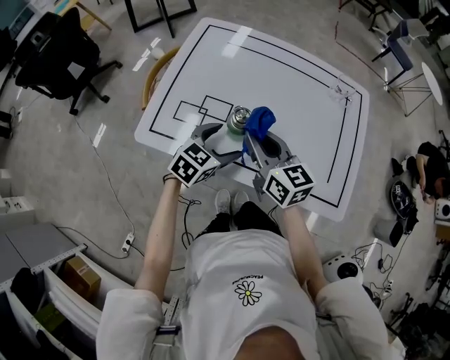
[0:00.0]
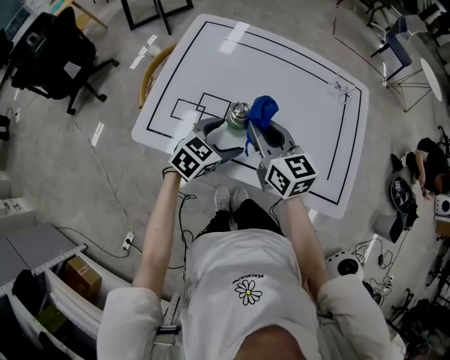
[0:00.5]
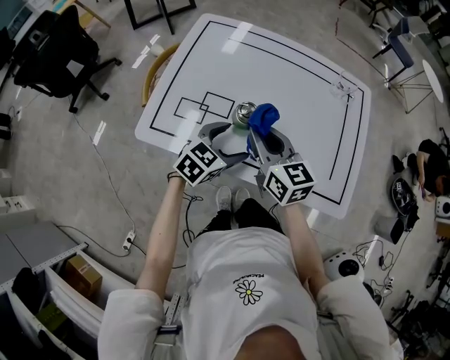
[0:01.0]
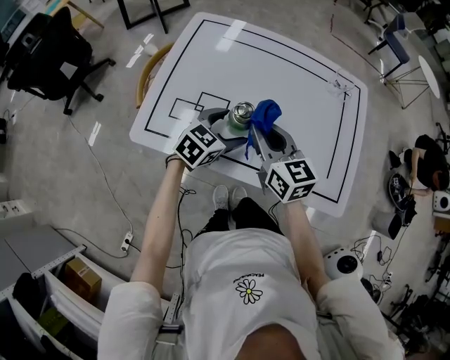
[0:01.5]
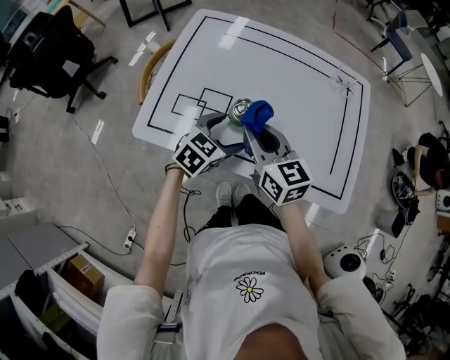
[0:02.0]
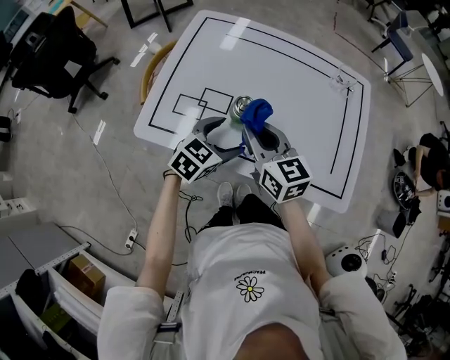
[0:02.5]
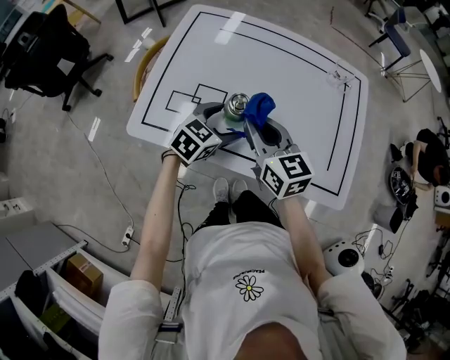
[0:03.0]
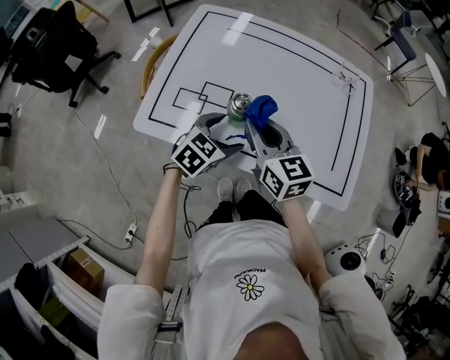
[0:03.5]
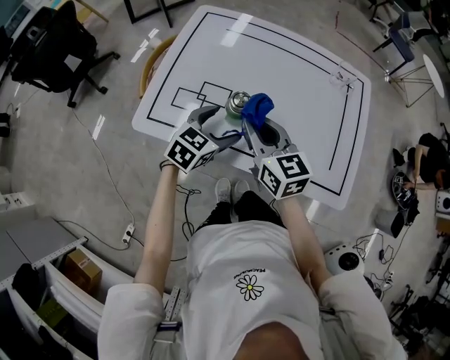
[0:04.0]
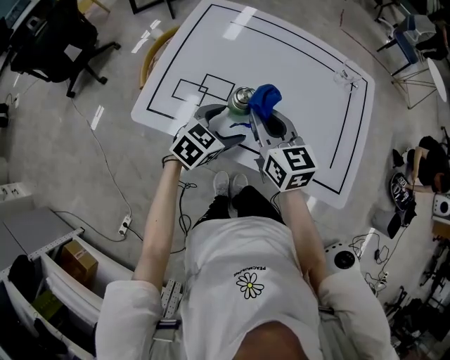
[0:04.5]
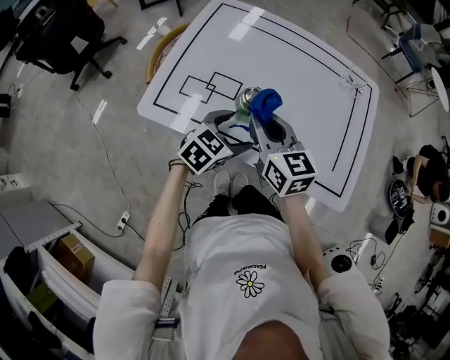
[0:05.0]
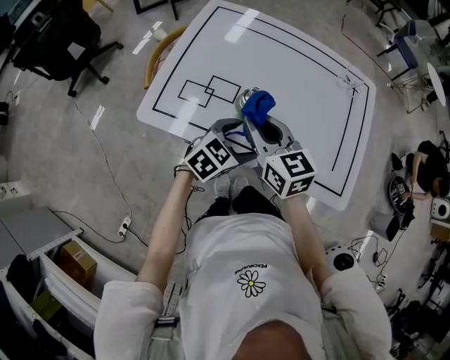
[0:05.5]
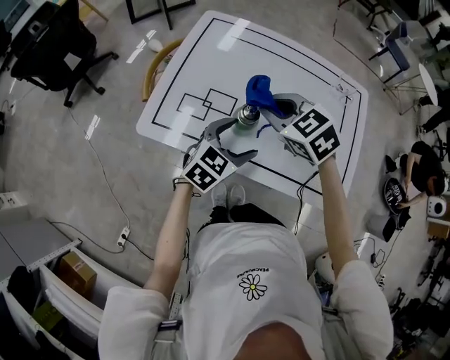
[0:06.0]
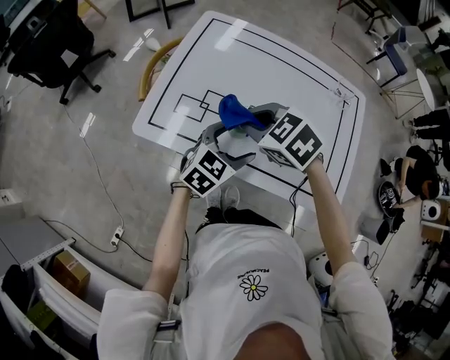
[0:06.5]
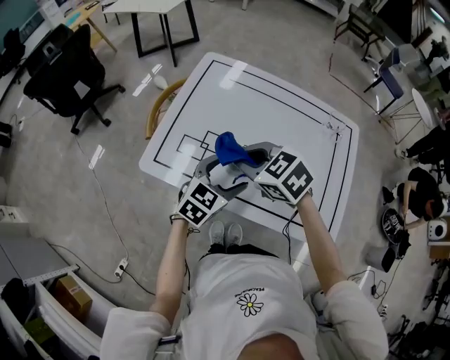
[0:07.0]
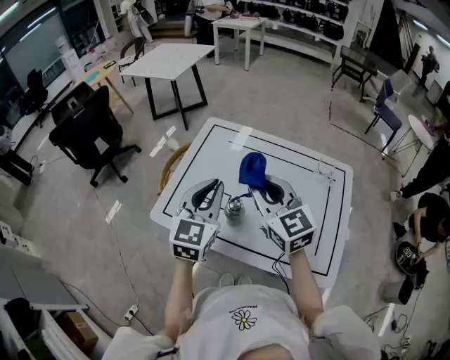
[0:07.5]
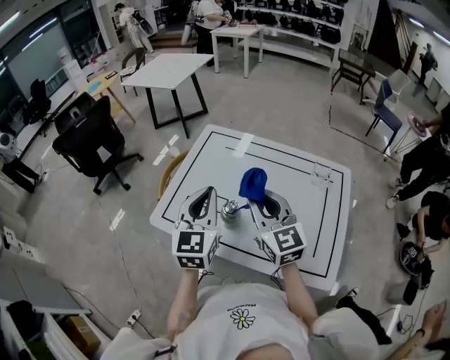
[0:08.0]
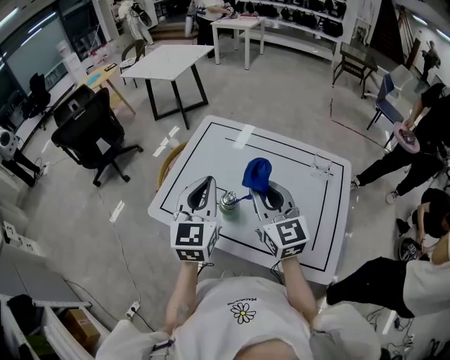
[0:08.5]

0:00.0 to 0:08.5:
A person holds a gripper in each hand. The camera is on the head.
0:00.0 to 0:04.0: The grippers move only a little.
0:04.0 to 0:06.5: The right gripper ends up roughly 5 cm from where it was, and tilts its fingers roughly 40 degrees downward.
0:06.5 to 0:08.5: The left gripper heads upward, covering roughly 20 cm, changes its angle by roughly 50 degrees, and closes up; the right gripper is displaced upward and to the right by roughly 15 cm, and points its fingers some 50 degrees further upward.

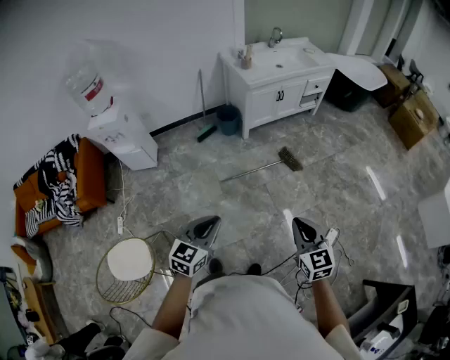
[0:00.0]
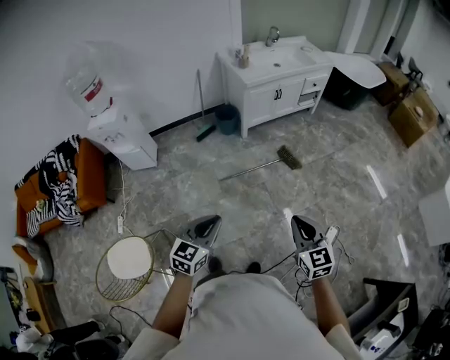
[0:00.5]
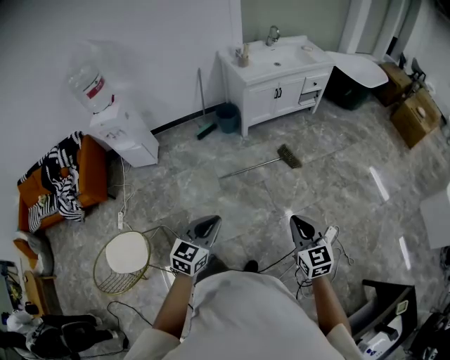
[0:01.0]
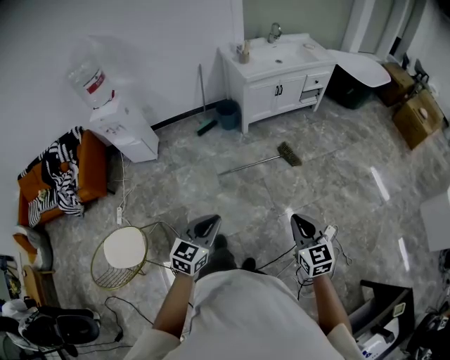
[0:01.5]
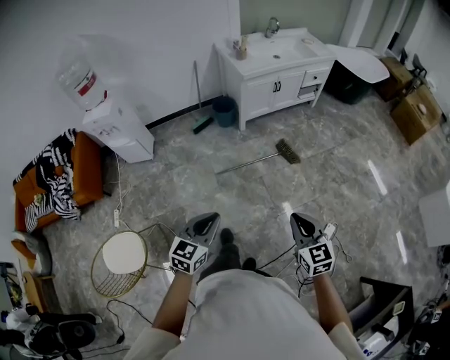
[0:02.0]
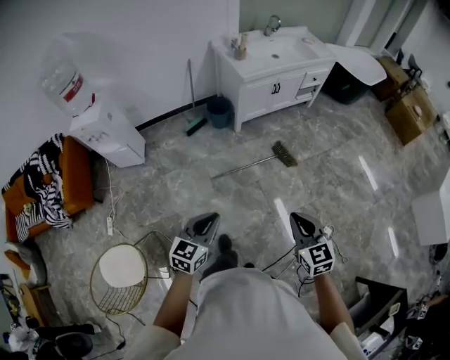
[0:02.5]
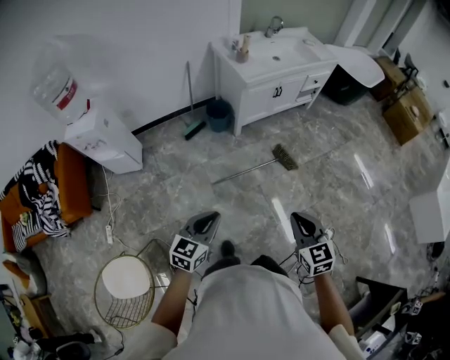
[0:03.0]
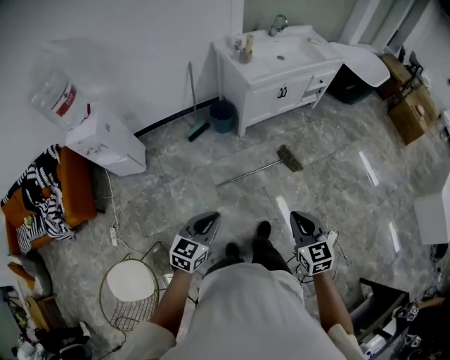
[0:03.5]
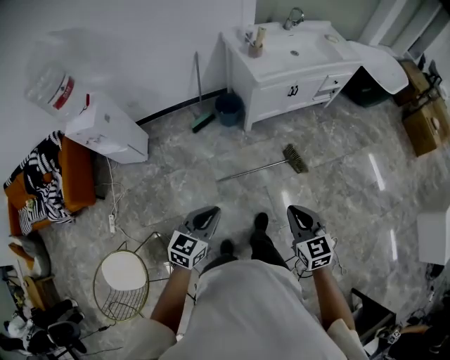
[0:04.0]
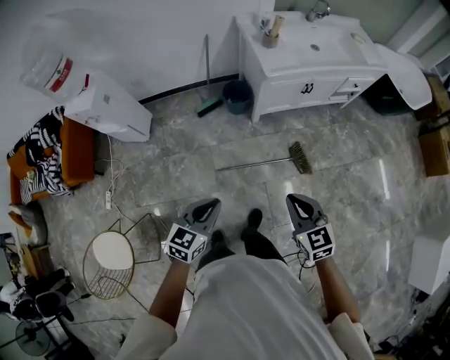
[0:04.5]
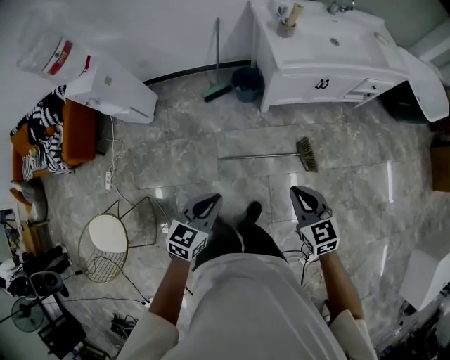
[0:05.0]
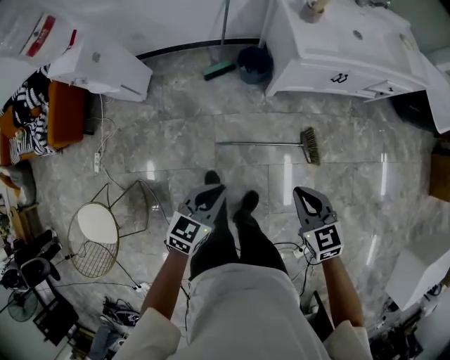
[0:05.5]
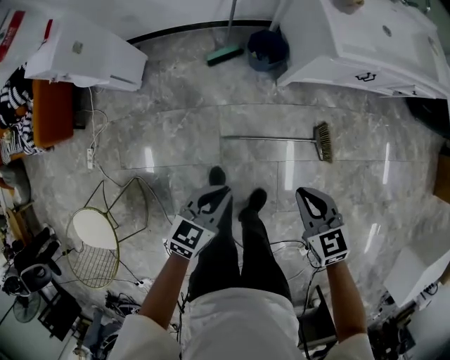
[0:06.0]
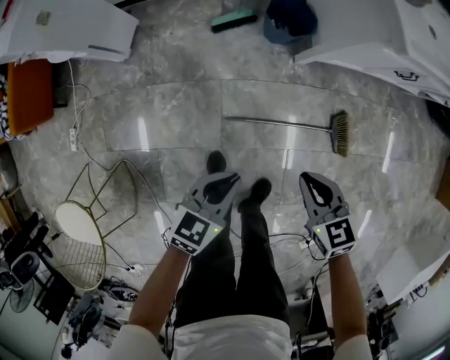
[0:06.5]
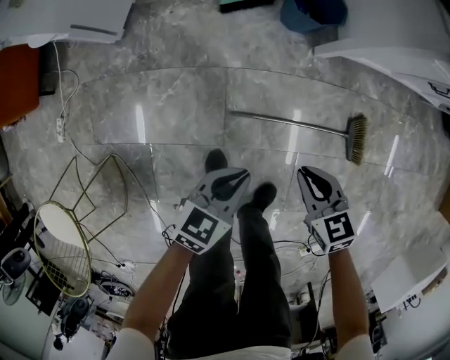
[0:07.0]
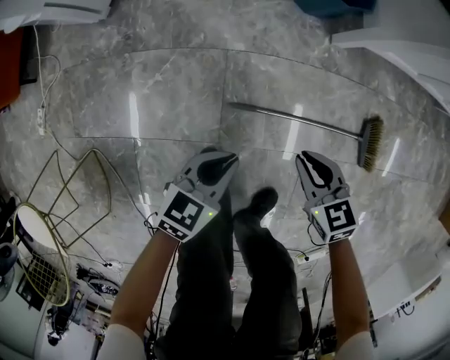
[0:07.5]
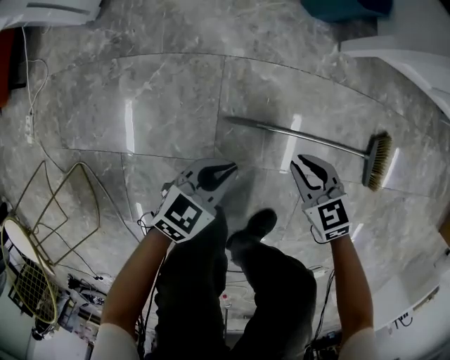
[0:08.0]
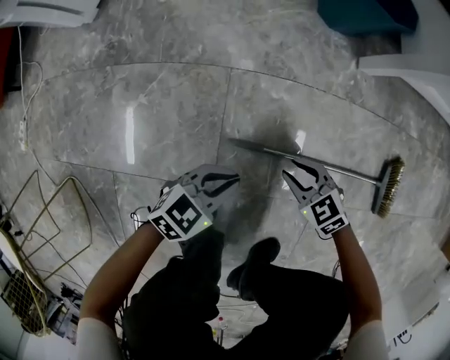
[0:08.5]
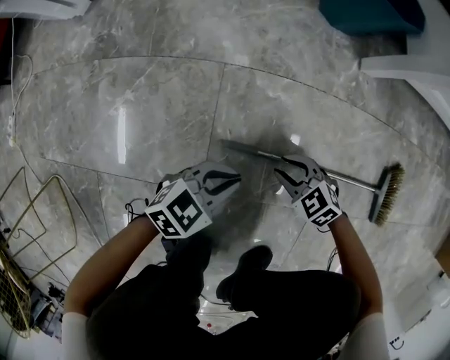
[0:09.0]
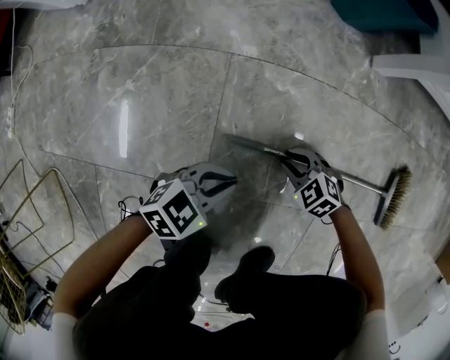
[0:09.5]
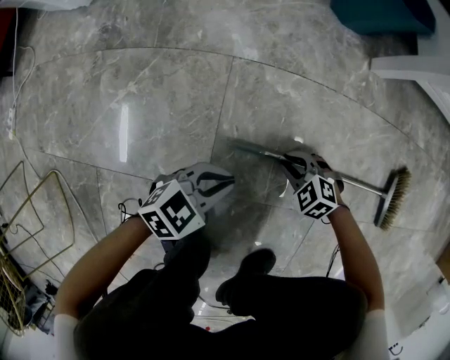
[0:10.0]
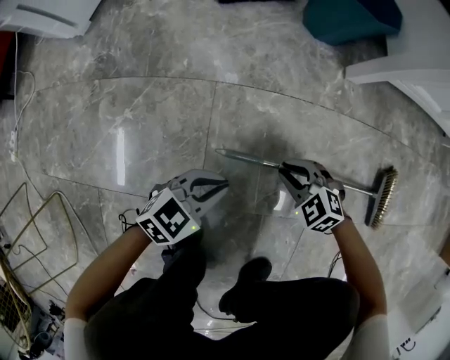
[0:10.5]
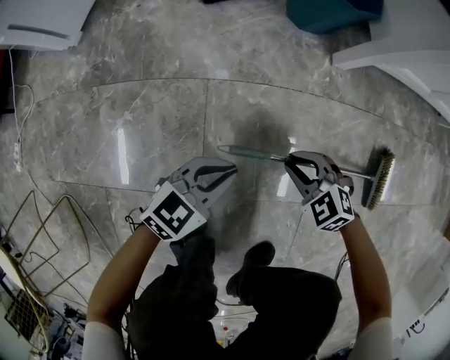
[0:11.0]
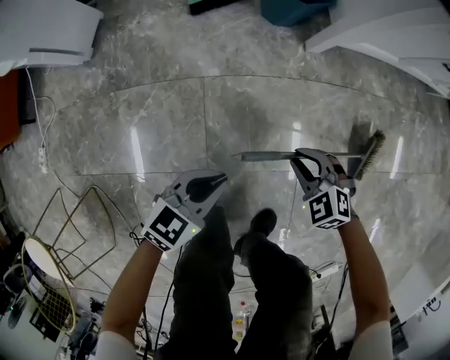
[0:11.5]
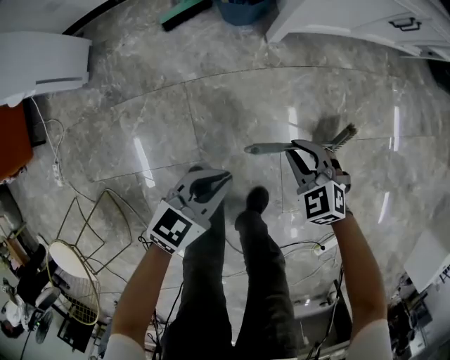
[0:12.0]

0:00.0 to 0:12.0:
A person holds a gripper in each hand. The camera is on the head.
0:00.0 to 0:02.0: The right gripper shifts by some 5 cm; the left gripper heads to the right, covering approximately 5 cm.
0:02.0 to 0:04.0: The two grippers go about 30 cm forward.
0:04.0 to 0:06.0: The left gripper shifts some 35 cm downward and forward. Meanwhile the right gripper travels forward and downward by about 35 cm, and rotates approximately 30 degrees.
0:06.0 to 0:08.0: Both grippers move downward, roughly 60 cm.
0:08.0 to 0:10.0: The right gripper goes some 25 cm downward, and rotates approximately 40 degrees, while the left gripper goes approximately 15 cm downward.
0:10.0 to 0:12.0: Both grippers travel together upward, approximately 40 cm. The right gripper turns by roughly 30 degrees.

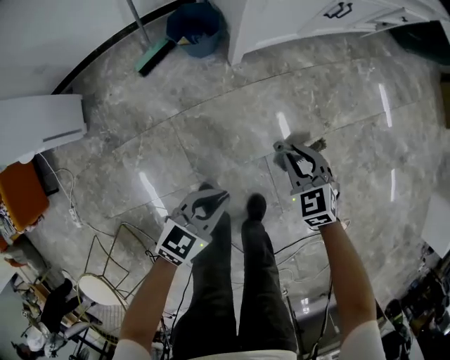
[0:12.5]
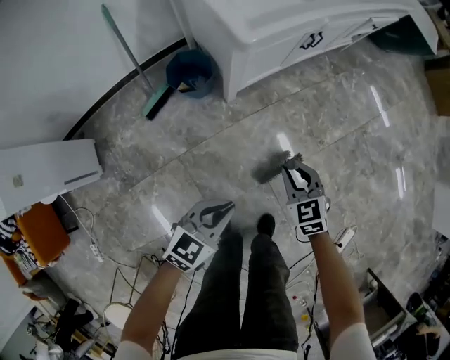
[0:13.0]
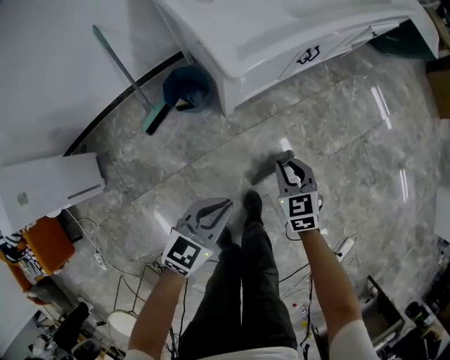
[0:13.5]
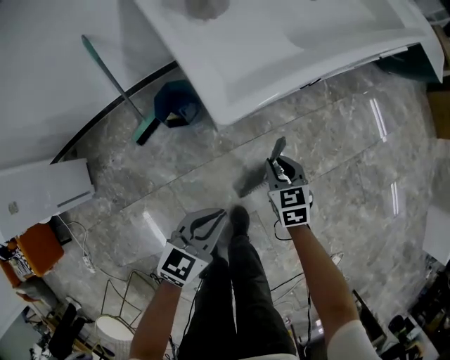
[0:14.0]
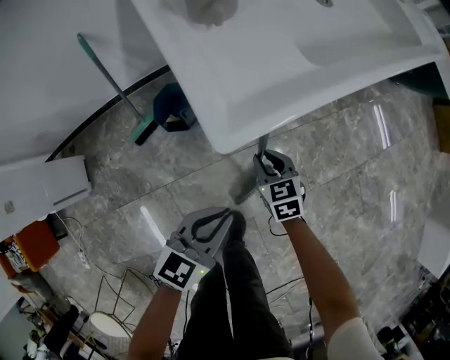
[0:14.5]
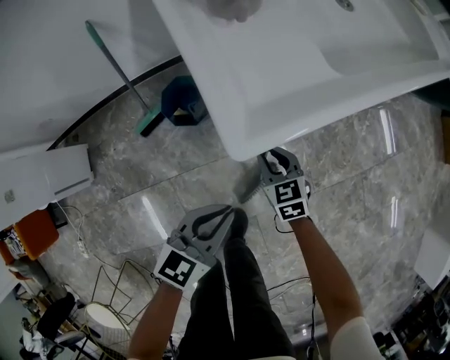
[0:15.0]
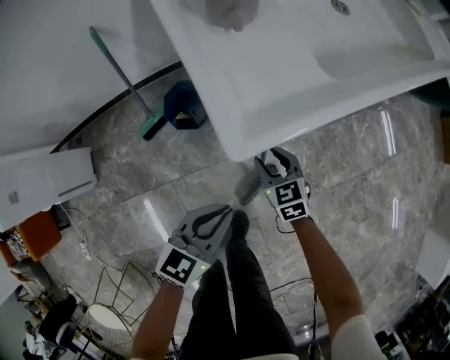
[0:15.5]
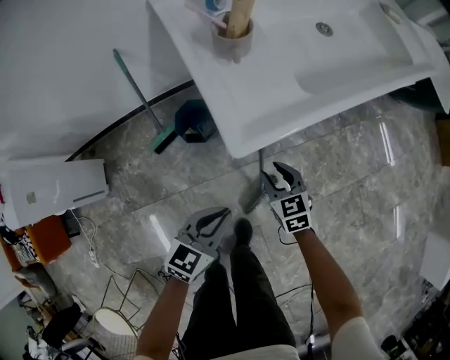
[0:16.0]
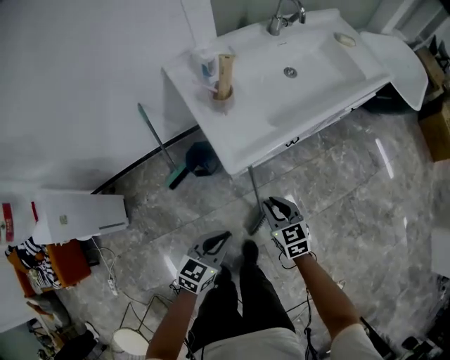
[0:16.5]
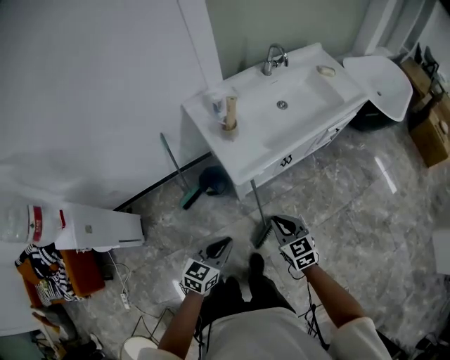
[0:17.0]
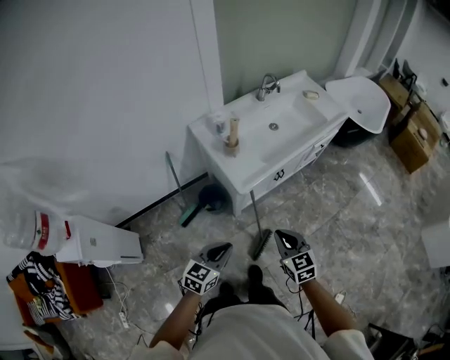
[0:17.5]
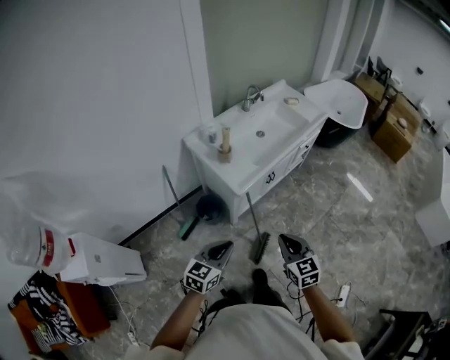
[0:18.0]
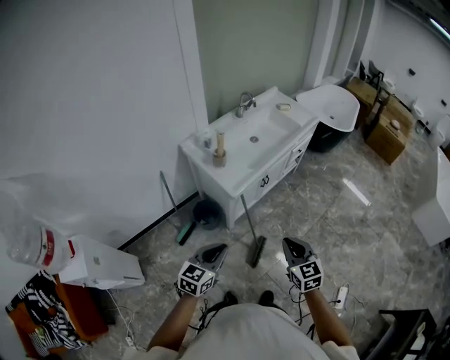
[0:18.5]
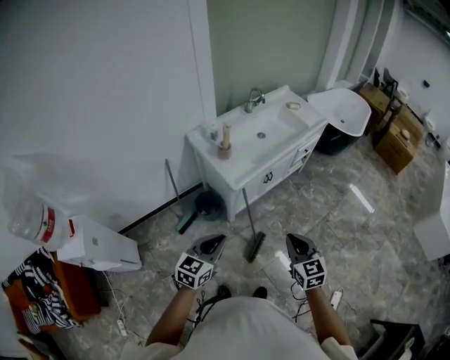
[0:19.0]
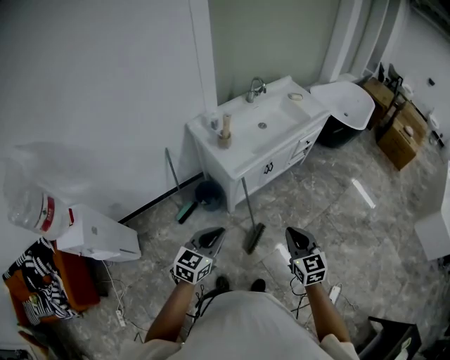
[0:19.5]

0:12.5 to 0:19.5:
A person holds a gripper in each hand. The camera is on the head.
0:12.5 to 0:14.5: Both grippers move forward, some 30 cm. The right gripper swivels about 20 degrees.
0:14.5 to 0:16.0: The right gripper travels upward by approximately 10 cm.
0:16.0 to 0:17.5: Both grippers move upward and backward, some 40 cm. The right gripper closes up.
0:17.5 to 0:19.5: The right gripper travels backward, upward and to the right by about 15 cm, while the left gripper moves upward and backward, some 15 cm.
